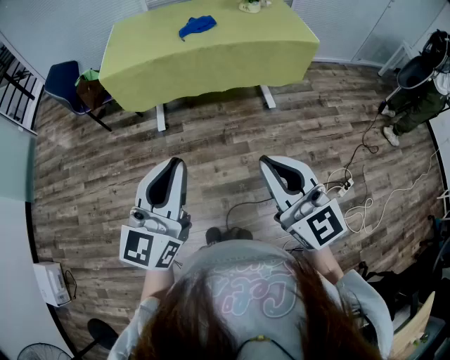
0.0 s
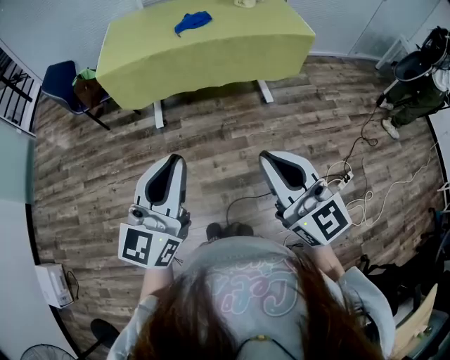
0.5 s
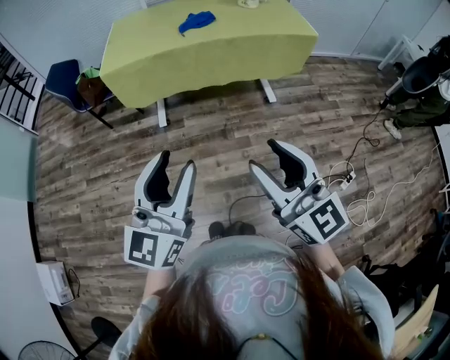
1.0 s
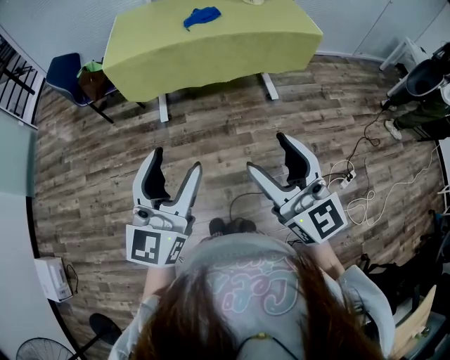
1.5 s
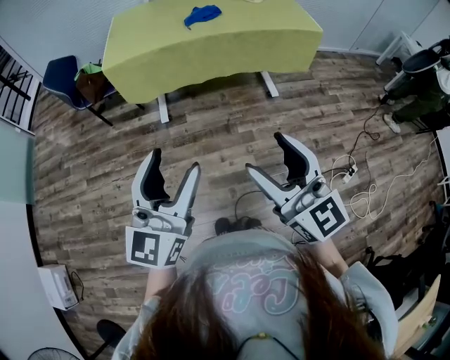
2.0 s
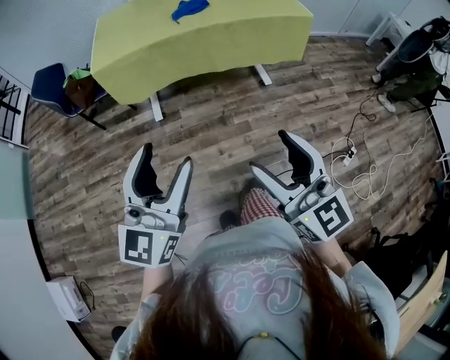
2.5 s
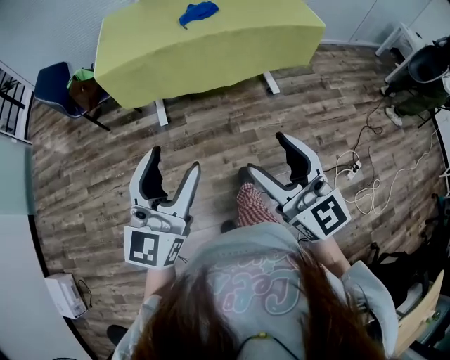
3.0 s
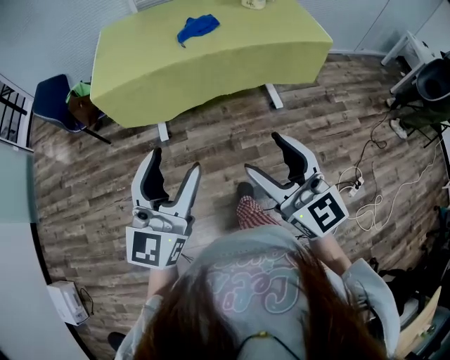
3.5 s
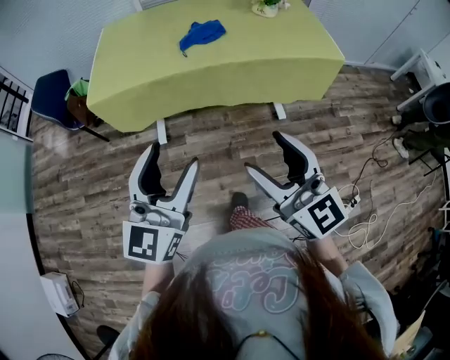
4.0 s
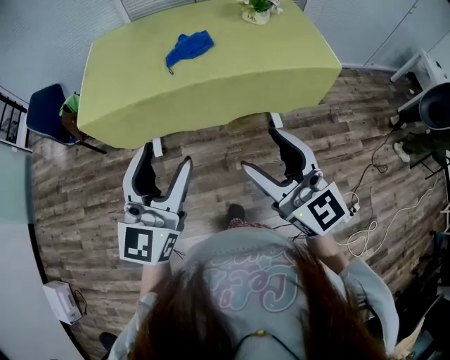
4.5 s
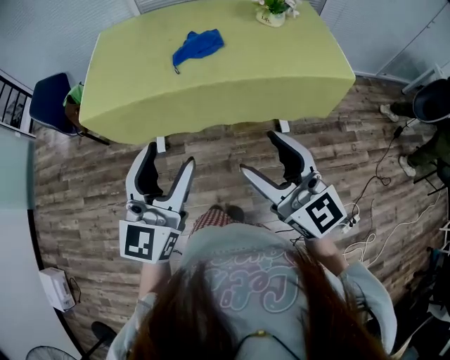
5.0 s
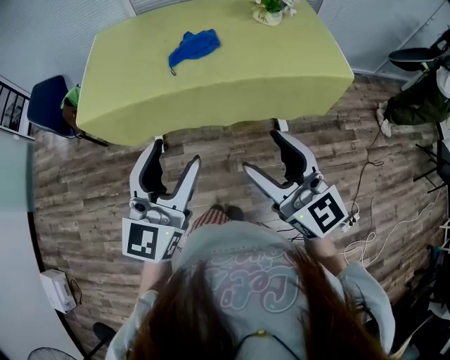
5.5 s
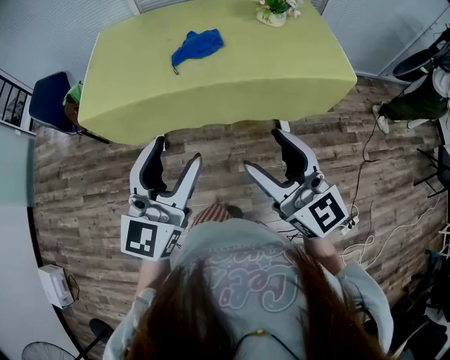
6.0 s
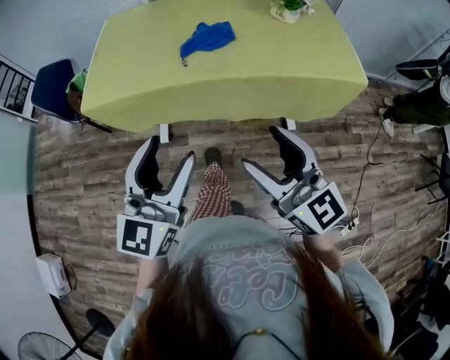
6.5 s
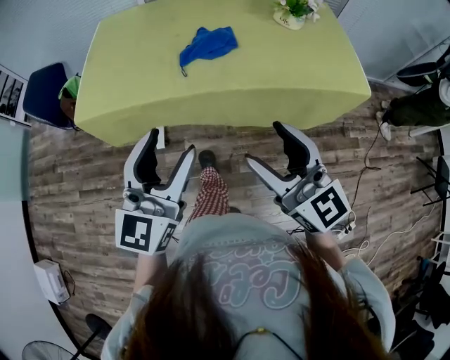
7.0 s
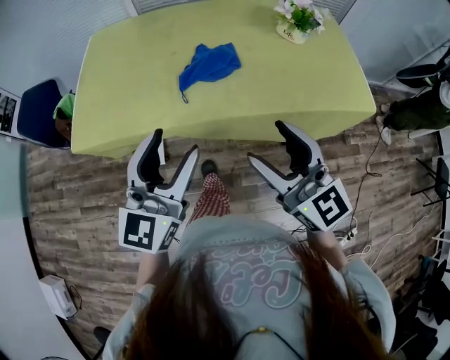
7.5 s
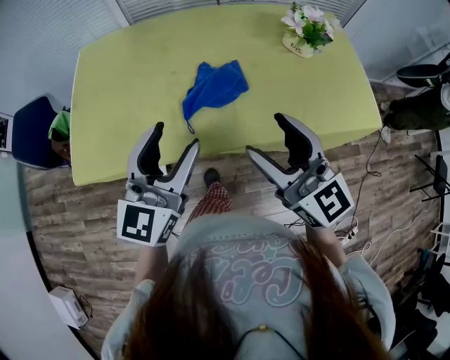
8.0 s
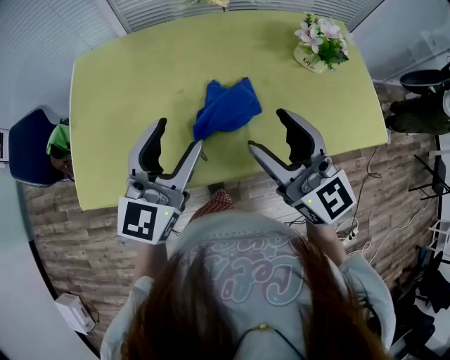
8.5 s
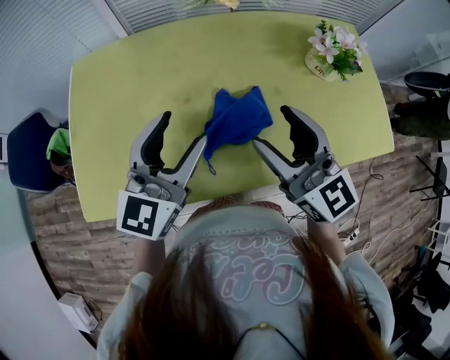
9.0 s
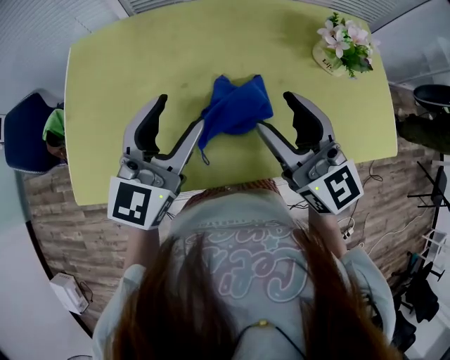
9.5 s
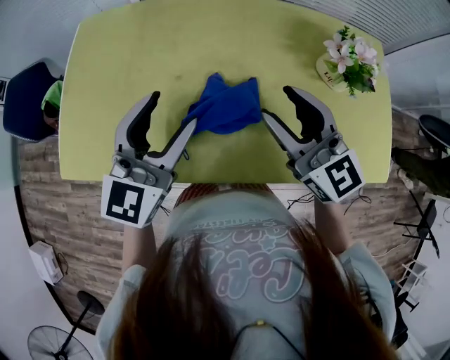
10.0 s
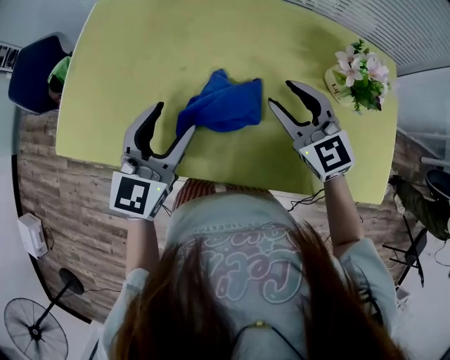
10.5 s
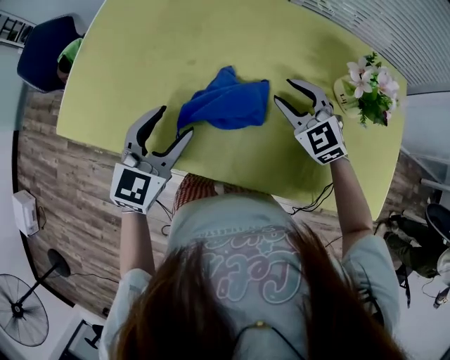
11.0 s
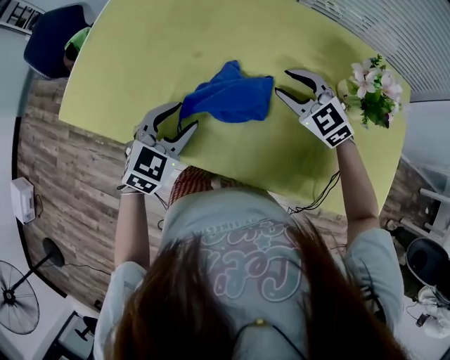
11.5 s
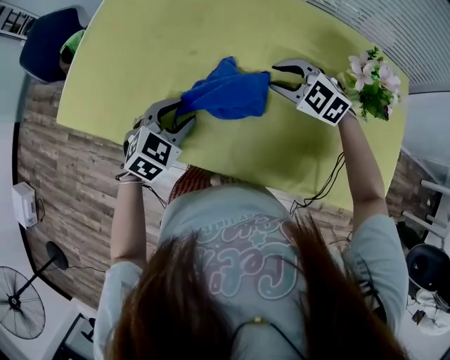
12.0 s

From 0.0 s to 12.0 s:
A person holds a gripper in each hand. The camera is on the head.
From 0.0 s to 2.0 s: Both grippers move to the left, approximately 5 cm. The left gripper opens; the right gripper opens up.
From 2.0 s to 4.0 s: Both grippers move forward, about 25 cm.
From 4.0 s to 6.0 s: The two grippers go roughly 15 cm forward and to the right.
From 6.0 s to 8.0 s: The two grippers go approximately 30 cm forward.
From 8.0 s to 10.0 s: Both grippers move forward, approximately 15 cm.
From 10.0 s to 12.0 s: The left gripper moves downward, about 20 cm, angles its fingers downward, by some 40 degrees, and closes its fingers. Meanwhile the right gripper goes roughly 20 cm downward and forward, and angles its fingers downward, by about 40 degrees.

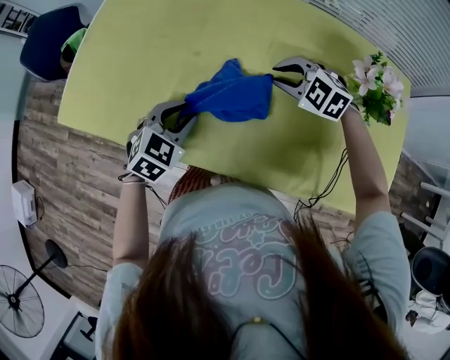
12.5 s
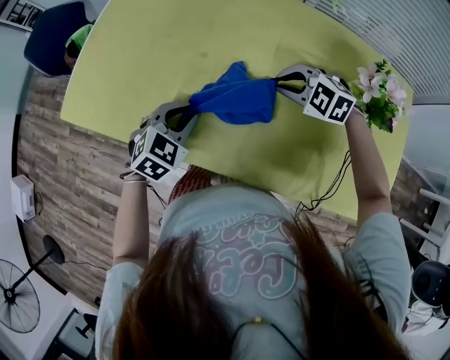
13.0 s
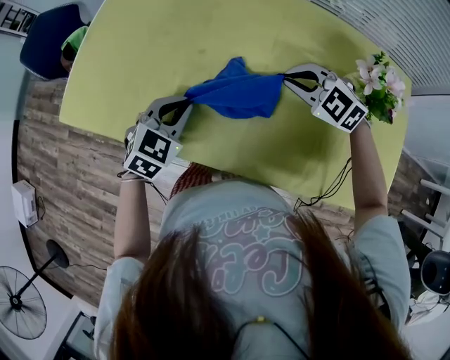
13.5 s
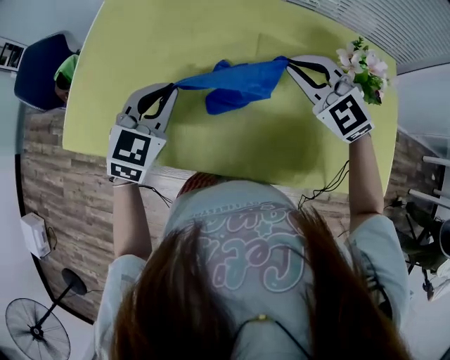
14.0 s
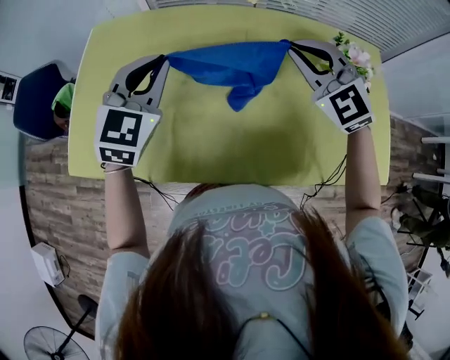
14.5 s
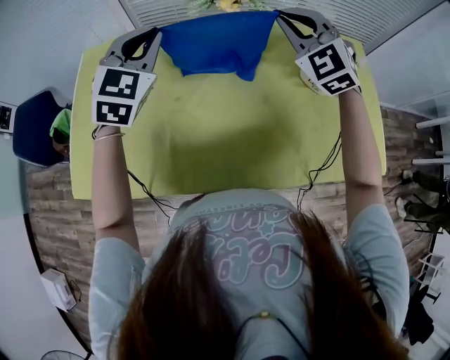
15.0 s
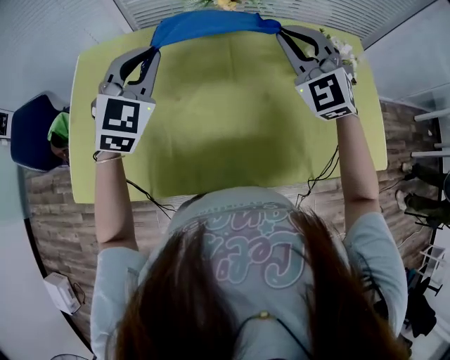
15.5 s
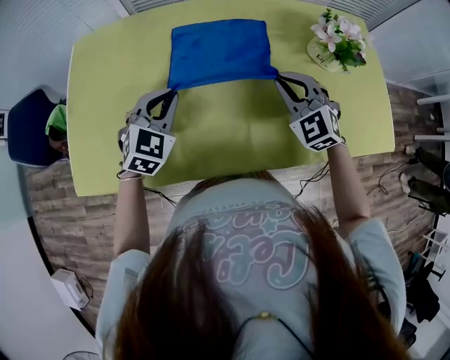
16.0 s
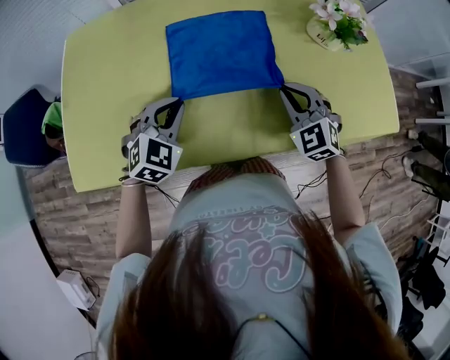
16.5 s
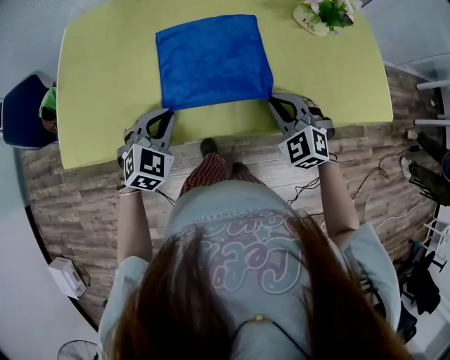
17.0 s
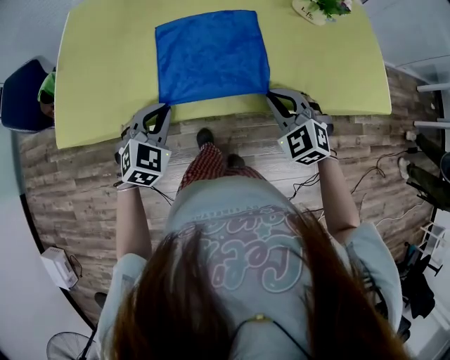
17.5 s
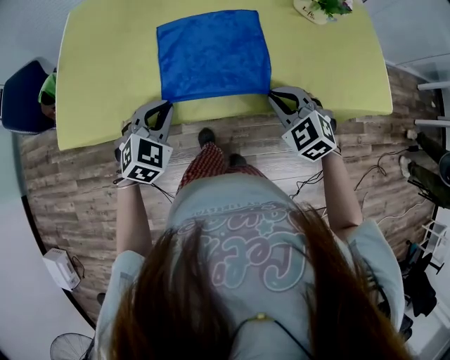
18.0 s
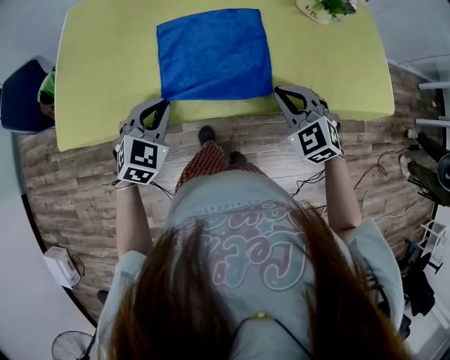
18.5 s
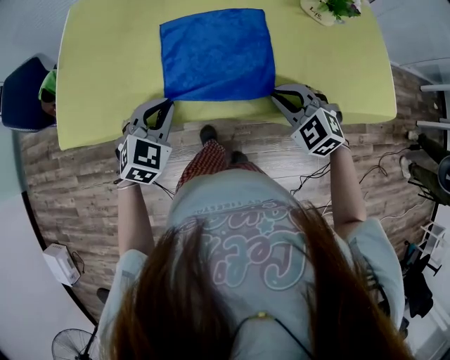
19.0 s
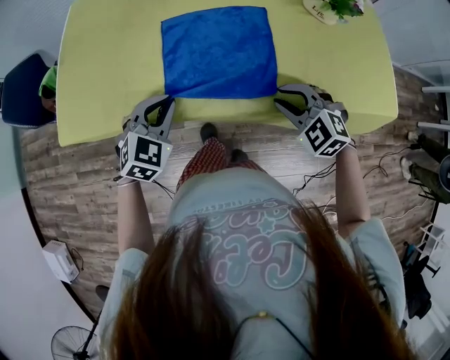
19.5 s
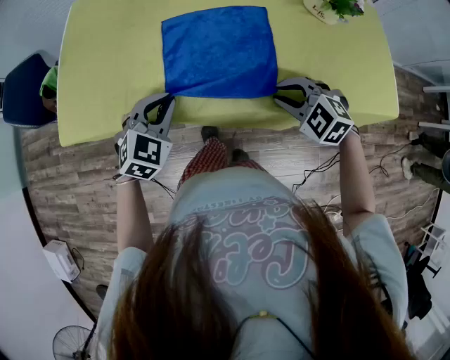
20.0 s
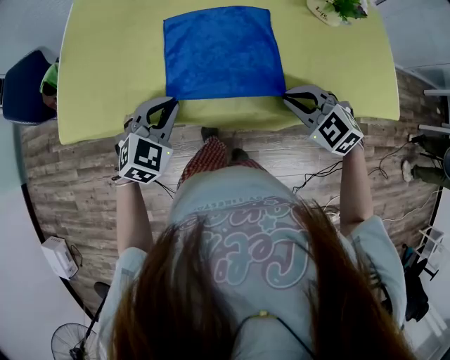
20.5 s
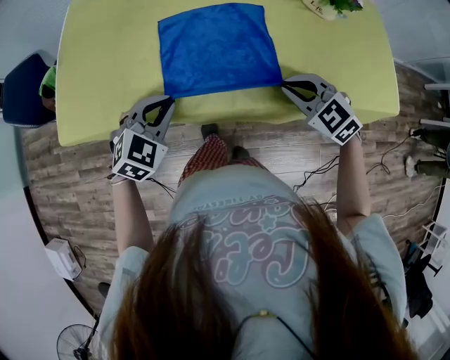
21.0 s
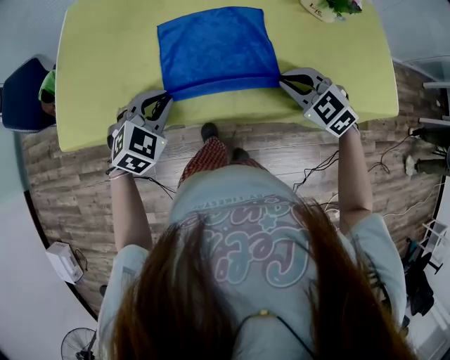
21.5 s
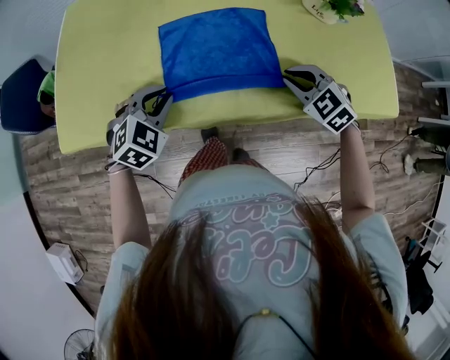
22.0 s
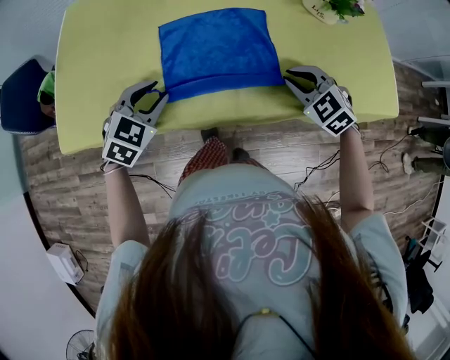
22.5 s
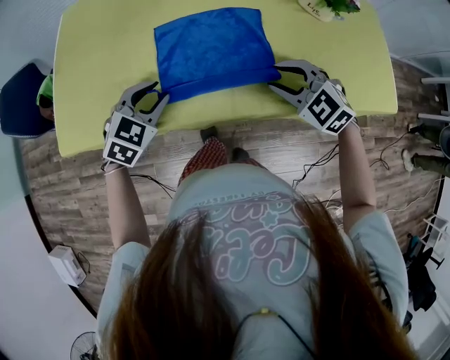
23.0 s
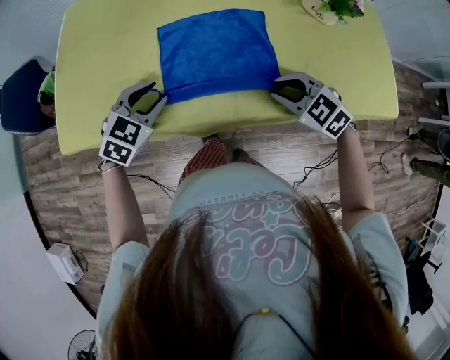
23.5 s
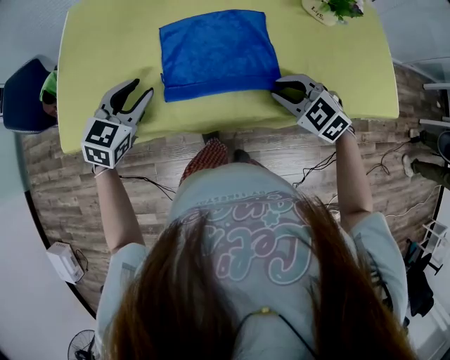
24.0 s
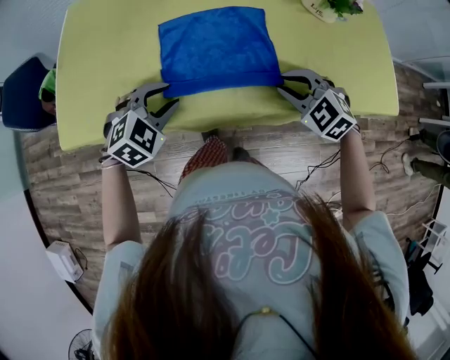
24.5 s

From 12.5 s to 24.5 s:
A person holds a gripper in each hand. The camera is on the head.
From 12.5 s to 14.5 s: The left gripper is displaced upward and forward by about 25 cm, turns by roughly 30 degrees, and closes its fingers. The right gripper travels upward by about 20 cm, and tips its fingers upward by roughly 30 degrees.
From 14.5 s to 16.5 s: The grippers both shift downward and backward by approximately 20 cm. The right gripper swivels roughly 20 degrees, while the left gripper rotates roughly 30 degrees.
From 16.5 s to 18.5 s: The two grippers go approximately 10 cm backward.
From 18.5 s to 20.5 s: The right gripper swivels roughly 20 degrees.
From 20.5 s to 22.5 s: The grippers both shift forward by approximately 5 cm.
From 22.5 s to 24.5 s: The grippers move only a little.

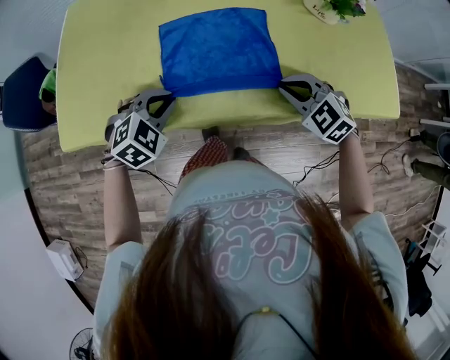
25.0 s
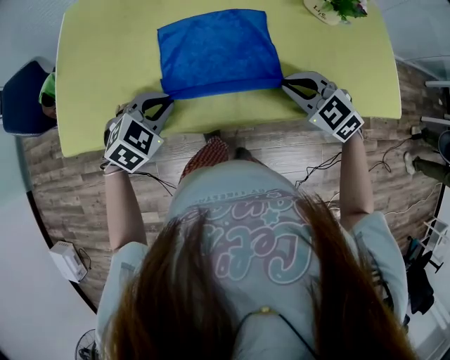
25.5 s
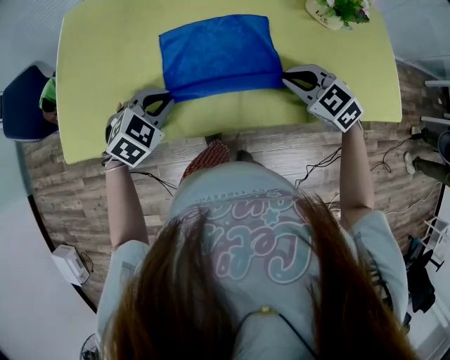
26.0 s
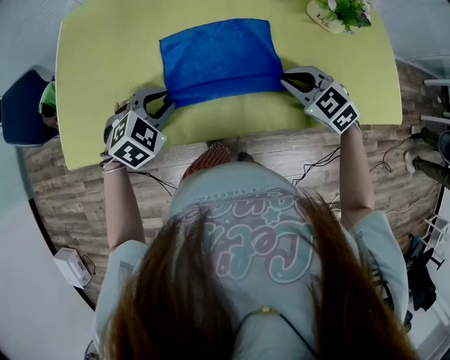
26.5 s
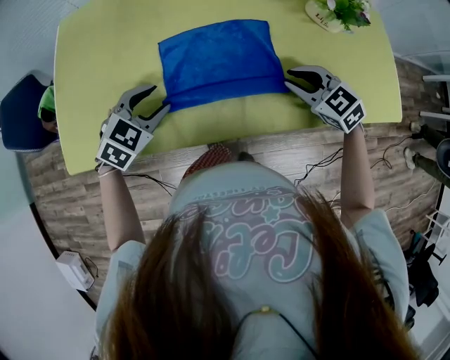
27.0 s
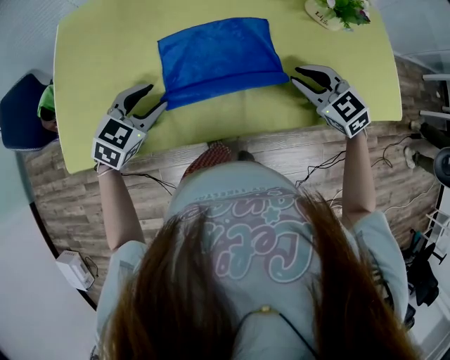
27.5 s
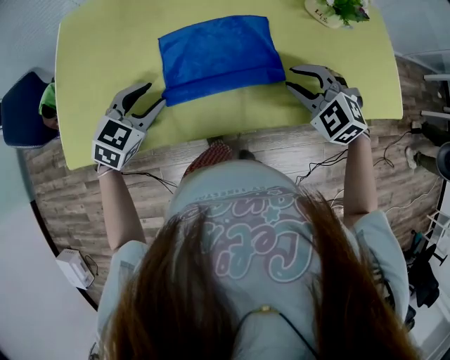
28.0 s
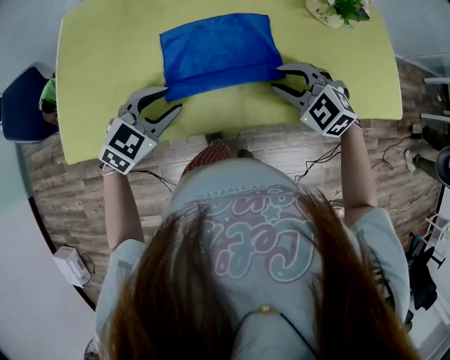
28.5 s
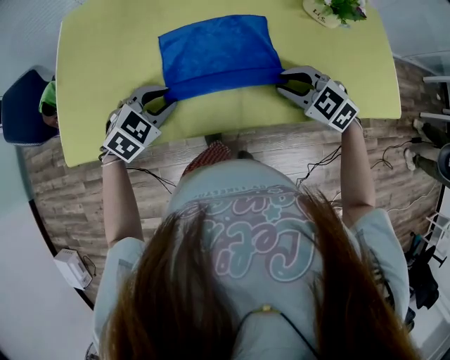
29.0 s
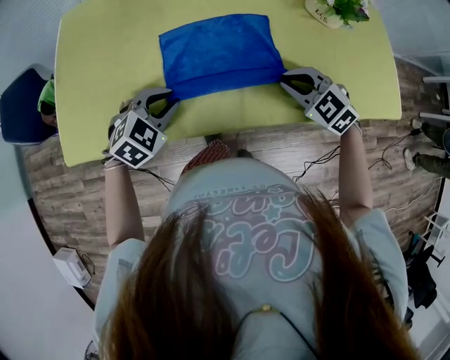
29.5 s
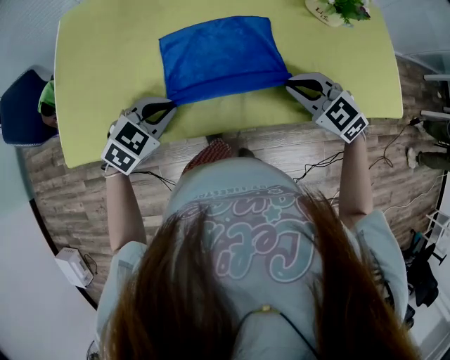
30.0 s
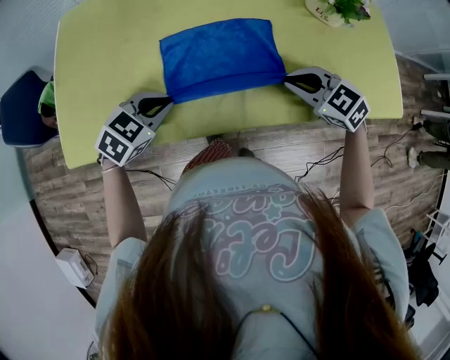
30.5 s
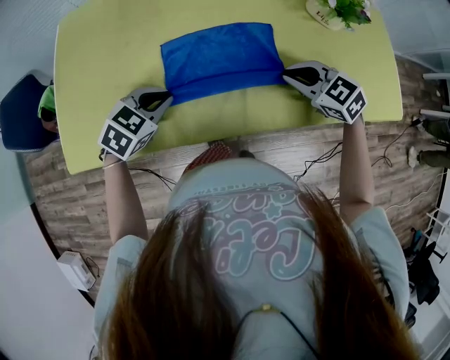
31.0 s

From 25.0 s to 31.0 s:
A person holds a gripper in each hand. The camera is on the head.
From 25.0 s to 27.0 s: Both grippers travel together forward, roughly 5 cm. The left gripper opens.
From 29.0 s to 31.0 s: The grippers make only small movements.
